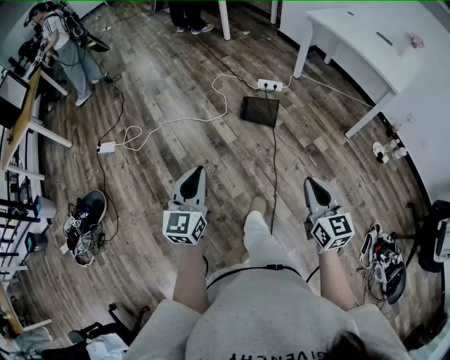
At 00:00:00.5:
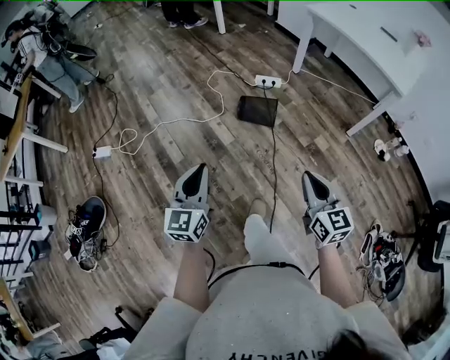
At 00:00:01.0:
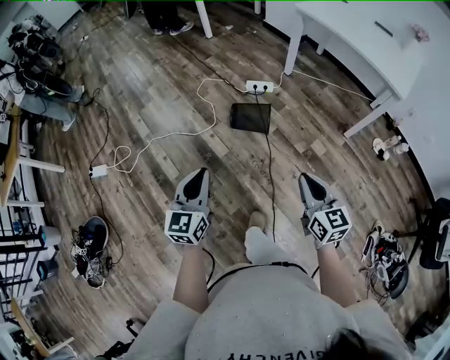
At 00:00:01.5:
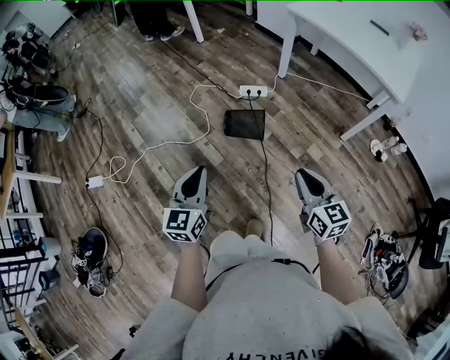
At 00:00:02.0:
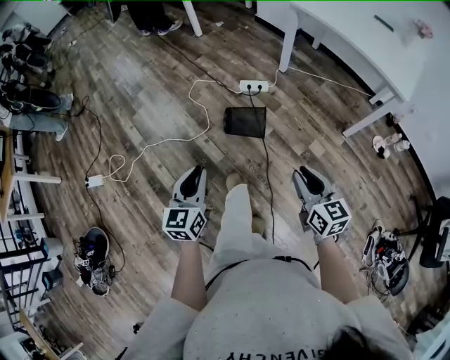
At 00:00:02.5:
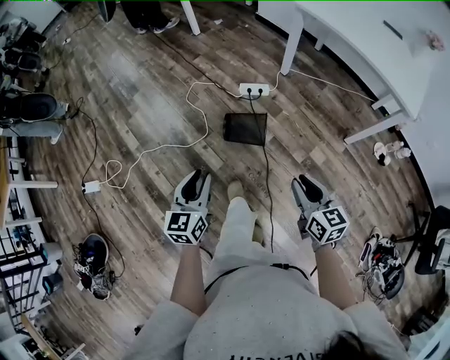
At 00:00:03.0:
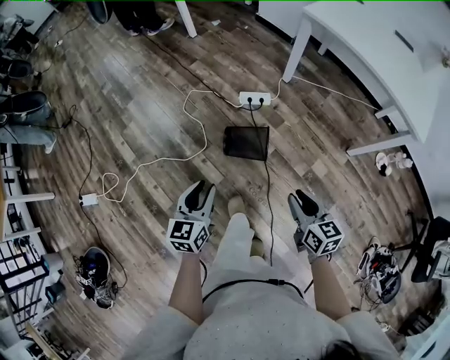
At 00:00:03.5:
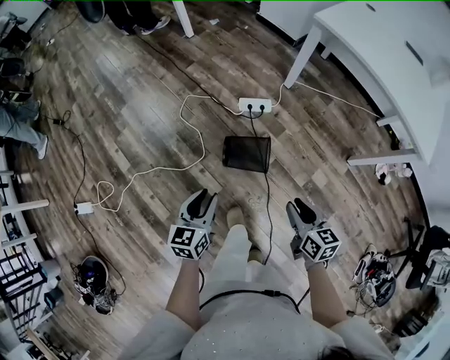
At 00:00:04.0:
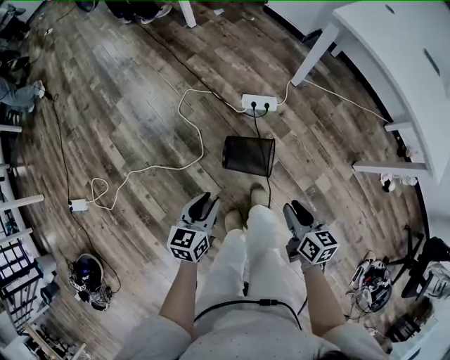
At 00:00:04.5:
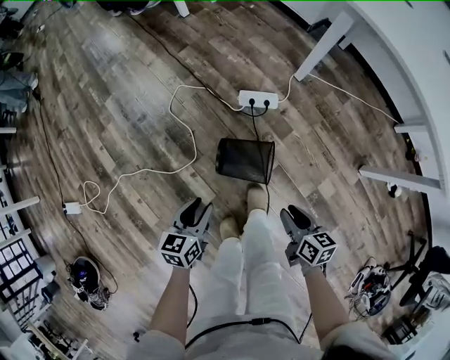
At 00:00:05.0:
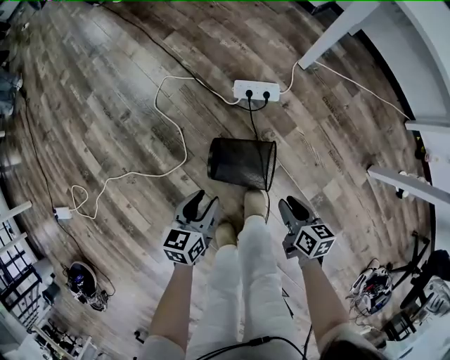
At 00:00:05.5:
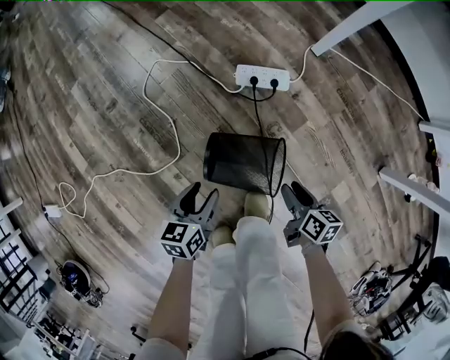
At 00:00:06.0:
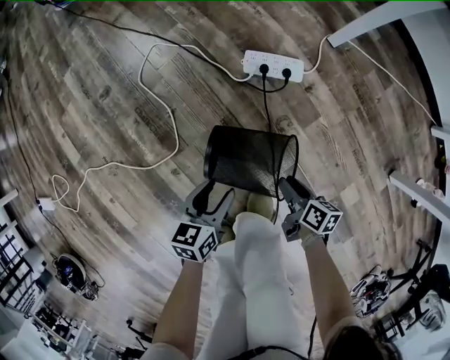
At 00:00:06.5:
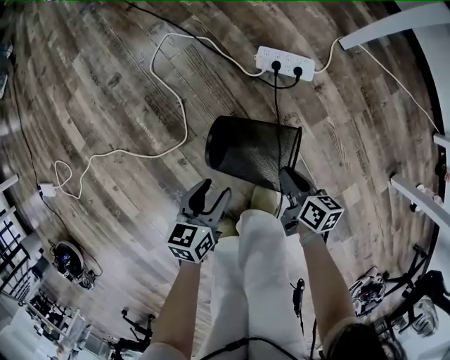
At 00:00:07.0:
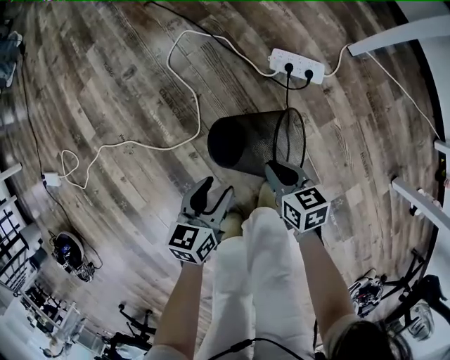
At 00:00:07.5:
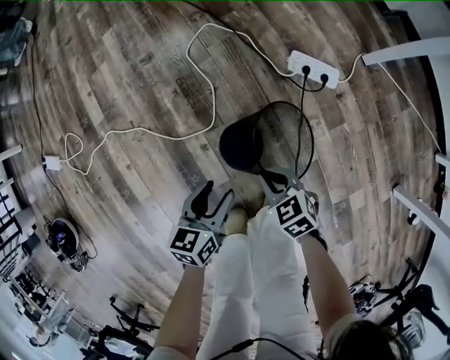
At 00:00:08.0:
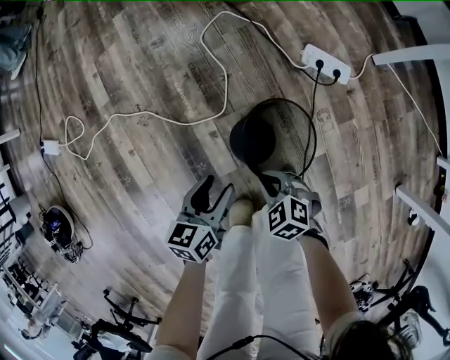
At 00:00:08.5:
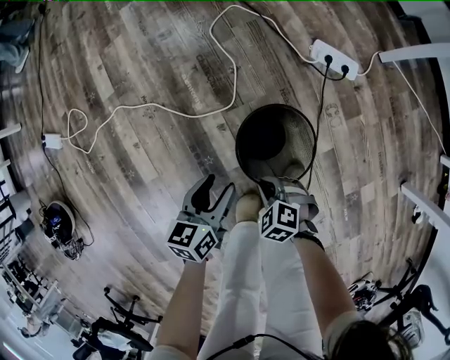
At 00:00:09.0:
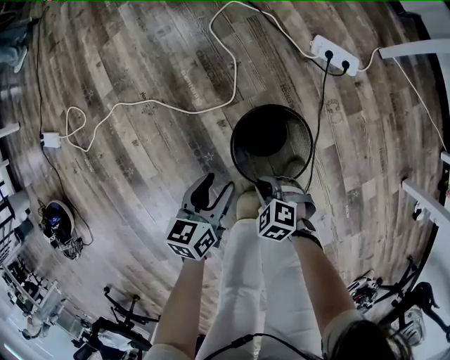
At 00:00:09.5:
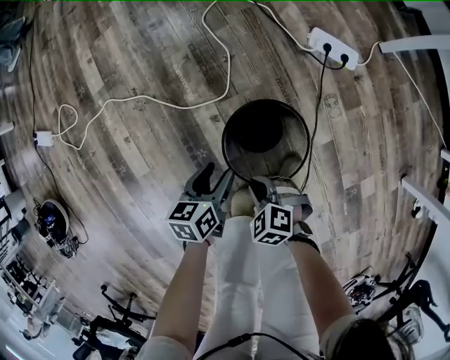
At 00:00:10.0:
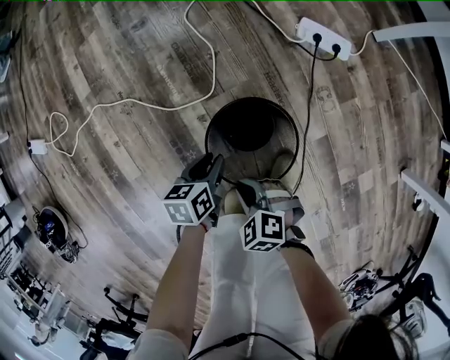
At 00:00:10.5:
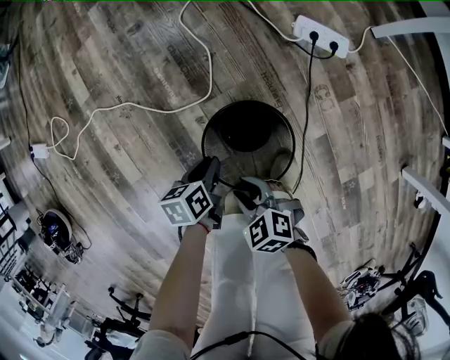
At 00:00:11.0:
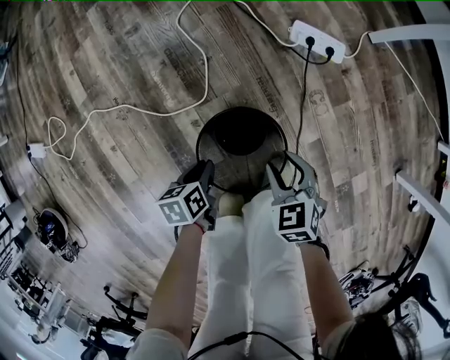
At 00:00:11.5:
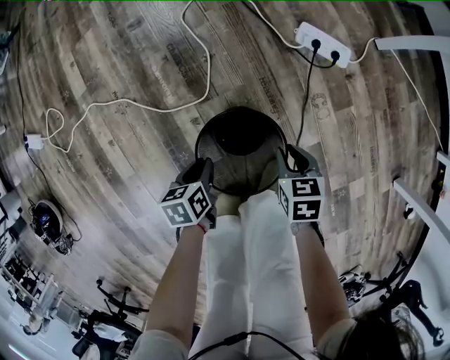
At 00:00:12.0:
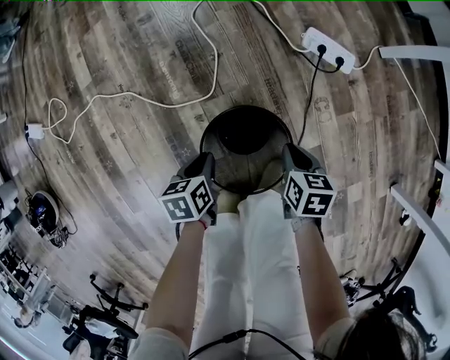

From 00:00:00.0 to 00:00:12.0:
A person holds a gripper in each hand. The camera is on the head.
From 00:00:00.0 to 00:00:02.0: The grippers both shift forward by roughly 30 cm.
From 00:00:02.0 to 00:00:04.0: The two grippers go approximately 35 cm forward and downward. The right gripper changes its angle by some 20 degrees. Meanwhile the left gripper turns by roughly 20 degrees.
From 00:00:04.0 to 00:00:06.0: Both grippers travel together downward, some 40 cm. The left gripper opens its fingers. Meanwhile the right gripper rotates roughly 30 degrees.
From 00:00:06.0 to 00:00:08.0: The left gripper ends up approximately 20 cm from where it was. Meanwhile the right gripper changes place by approximately 30 cm, twists roughly 90 degrees counterclockwise, seen from behind, and closes up.
From 00:00:08.0 to 00:00:10.0: The left gripper moves downward, roughly 15 cm, and closes its fingers, while the right gripper is displaced to the left and backward by about 10 cm.
From 00:00:10.0 to 00:00:12.0: The right gripper moves to the right and forward, approximately 20 cm, twists about 60 degrees clockwise, seen from behind, and opens and closes again.

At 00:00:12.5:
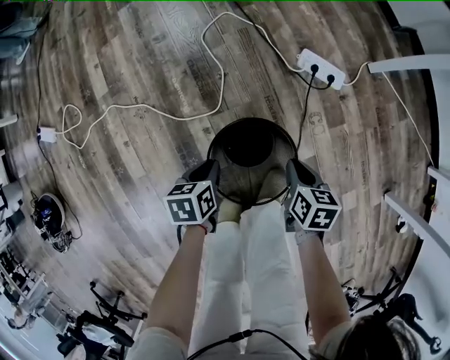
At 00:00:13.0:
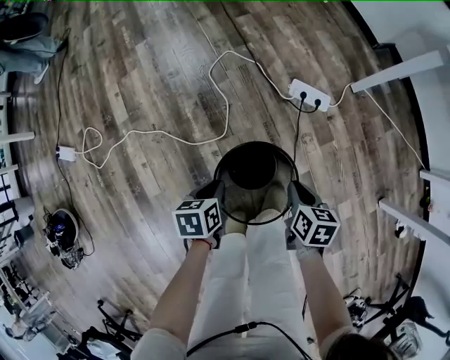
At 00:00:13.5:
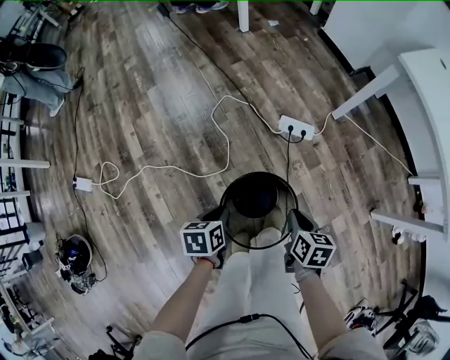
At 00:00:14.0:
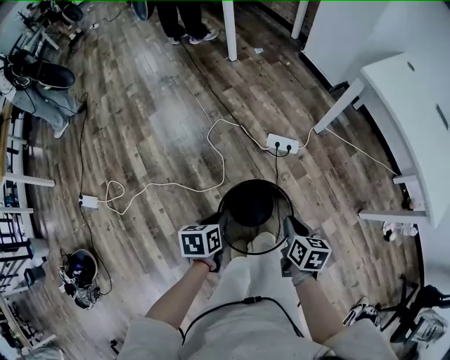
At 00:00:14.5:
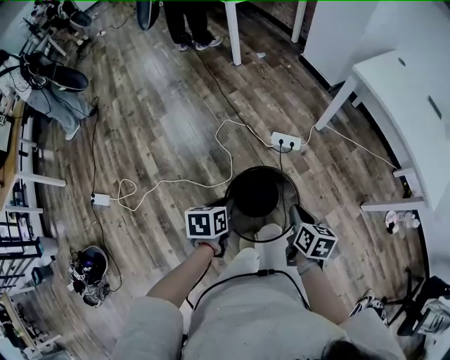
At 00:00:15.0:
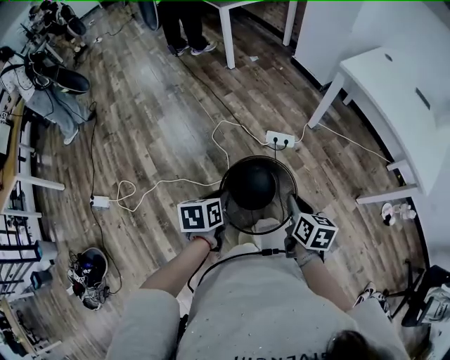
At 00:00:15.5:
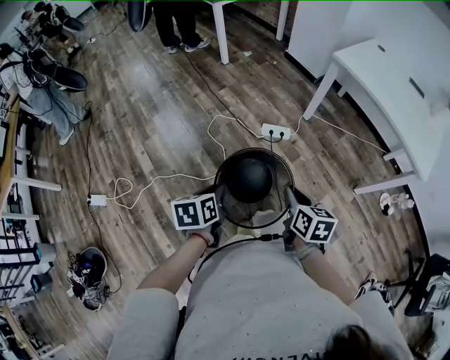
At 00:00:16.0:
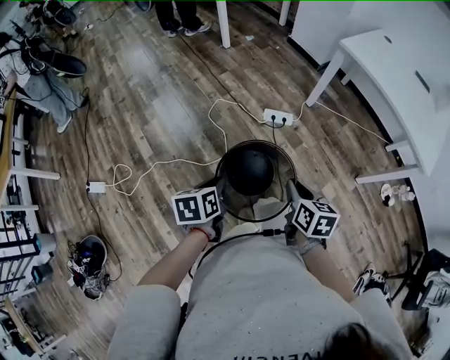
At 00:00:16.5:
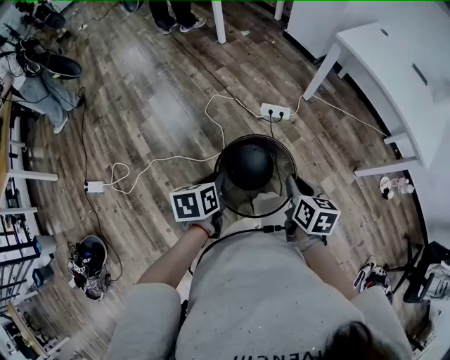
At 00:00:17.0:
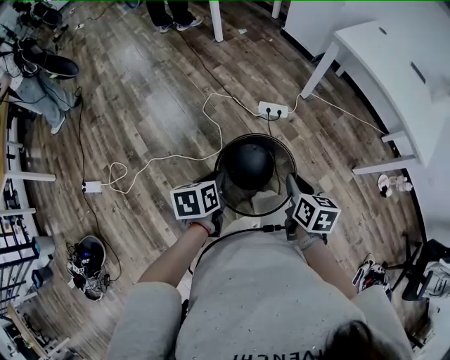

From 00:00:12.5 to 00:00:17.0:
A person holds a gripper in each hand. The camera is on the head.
From 00:00:12.5 to 00:00:14.5: Both grippers move upward, about 50 cm. The right gripper changes its angle by roughly 20 degrees.
From 00:00:14.5 to 00:00:17.0: Both grippers travel together backward, roughly 5 cm.

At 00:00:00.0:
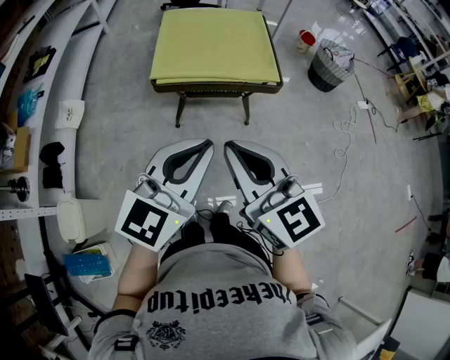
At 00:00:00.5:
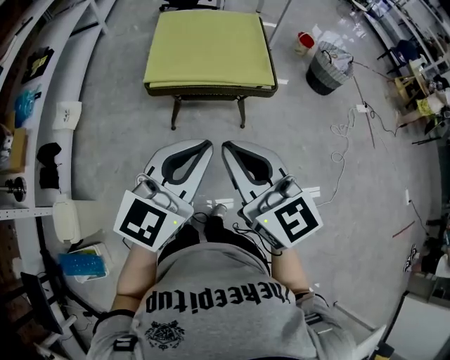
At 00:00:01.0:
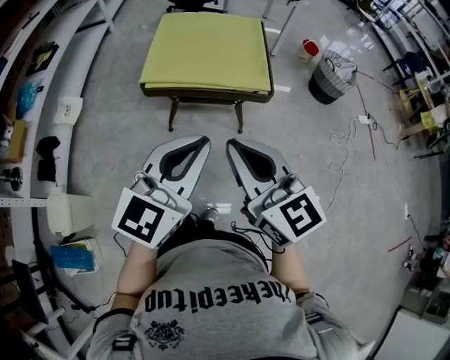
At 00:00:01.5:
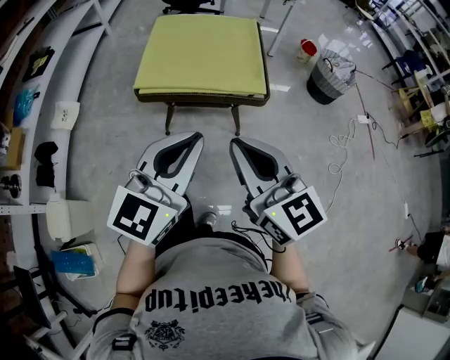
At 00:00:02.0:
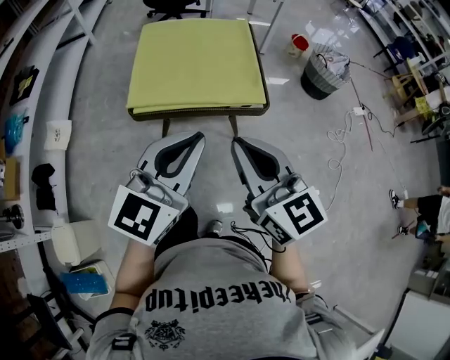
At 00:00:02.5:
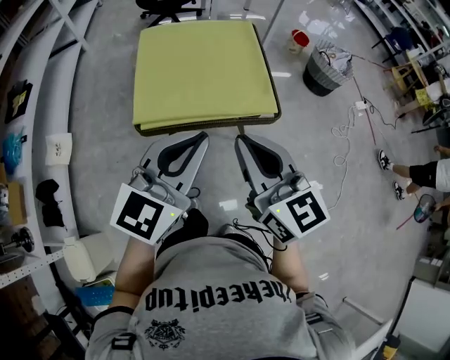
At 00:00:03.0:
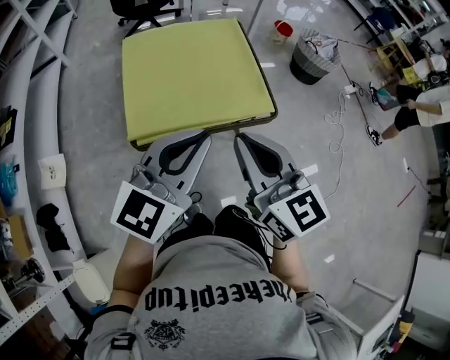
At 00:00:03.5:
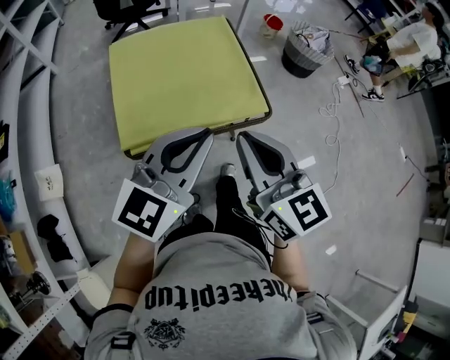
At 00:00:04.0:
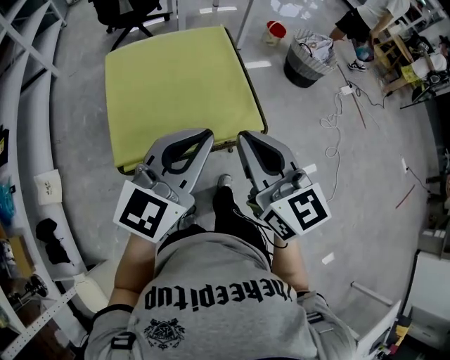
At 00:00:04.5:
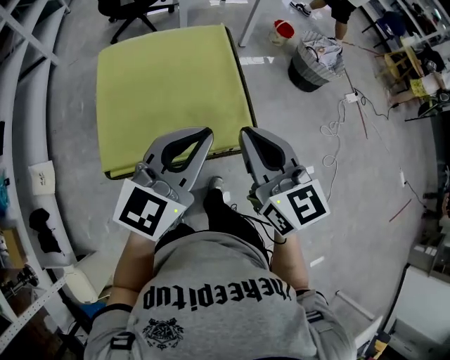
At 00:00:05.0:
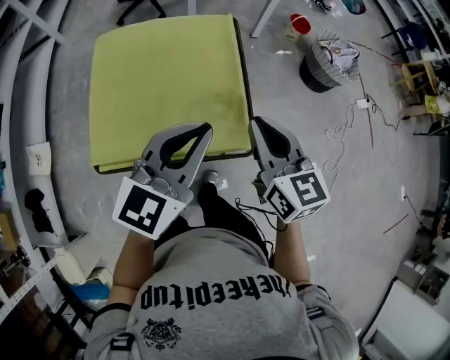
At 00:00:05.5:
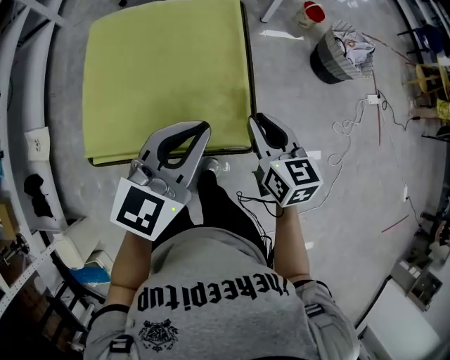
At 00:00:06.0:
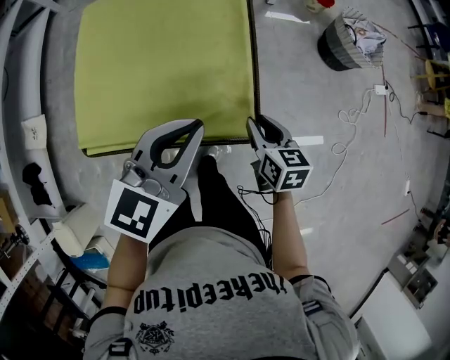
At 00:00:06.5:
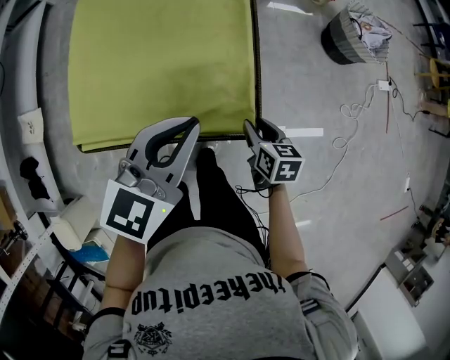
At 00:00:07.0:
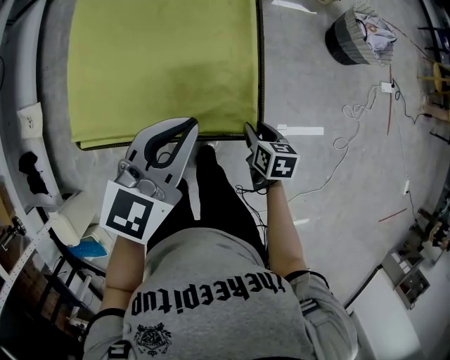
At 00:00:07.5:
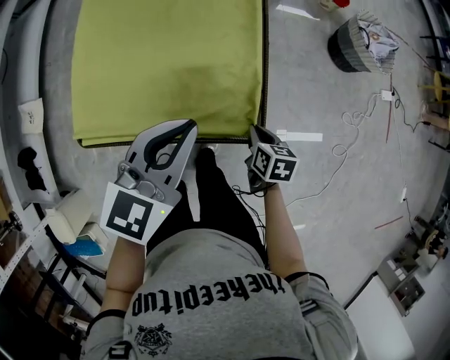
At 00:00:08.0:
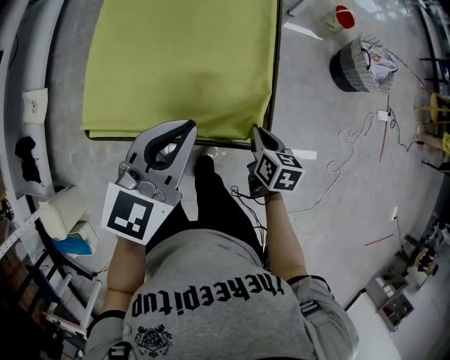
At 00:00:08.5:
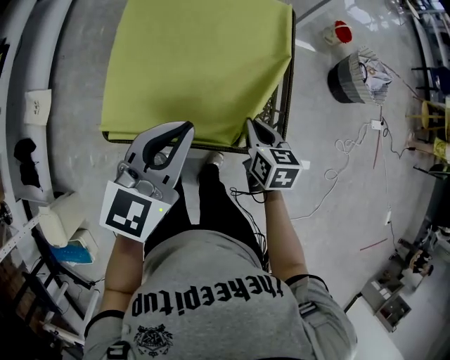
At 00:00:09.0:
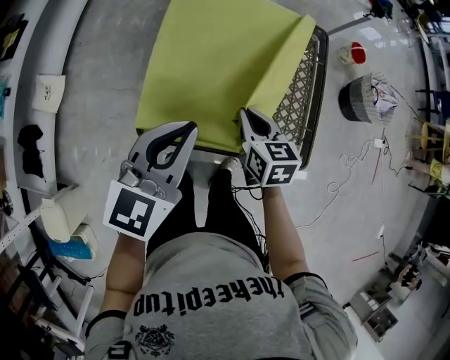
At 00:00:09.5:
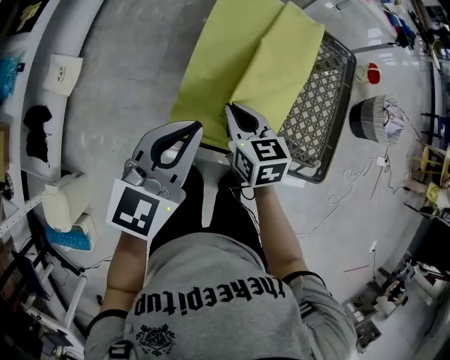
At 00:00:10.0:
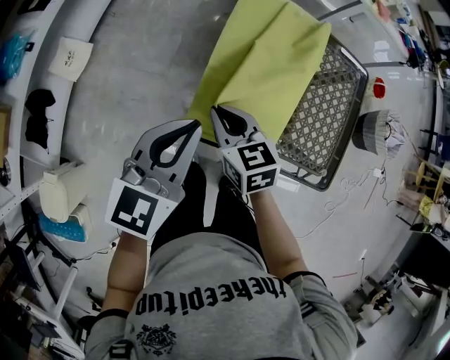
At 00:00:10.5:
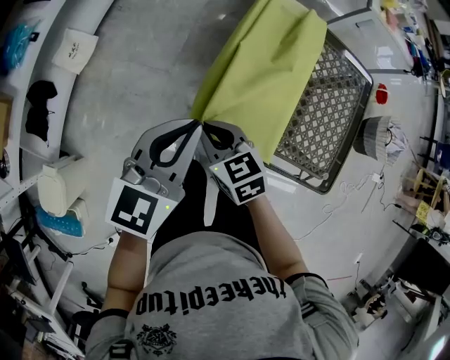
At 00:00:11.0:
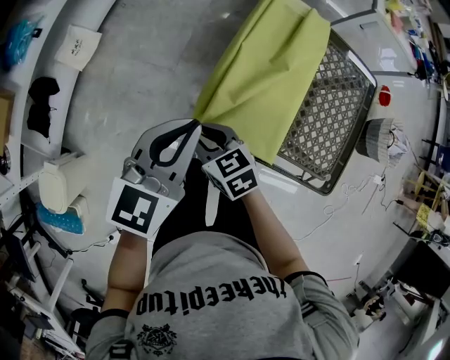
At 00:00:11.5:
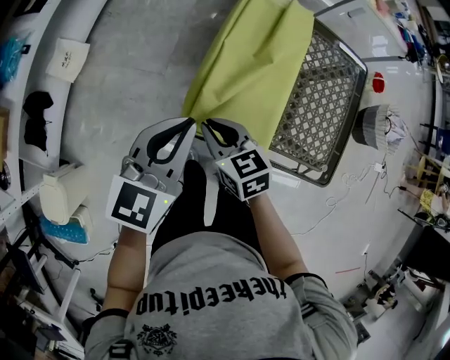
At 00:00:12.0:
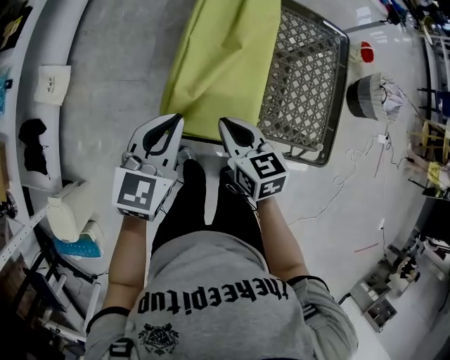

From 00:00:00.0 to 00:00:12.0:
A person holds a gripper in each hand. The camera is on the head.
From 00:00:00.0 to 00:00:02.0: The left gripper moves forward, roughly 15 cm. The right gripper goes some 15 cm forward and to the right.
From 00:00:02.0 to 00:00:04.0: The two grippers go about 20 cm forward.
From 00:00:04.0 to 00:00:06.0: The left gripper travels forward, downward and to the right by roughly 20 cm, and changes its angle by roughly 20 degrees. Meanwhile the right gripper travels downward, forward and to the right by approximately 35 cm, tips its fingers downward by about 30 degrees, and opens up.
From 00:00:06.0 to 00:00:08.0: The right gripper heads downward, covering approximately 5 cm, and closes its fingers; the left gripper heads to the left, covering some 5 cm.
From 00:00:08.0 to 00:00:10.0: Both grippers travel together to the left, some 40 cm. The right gripper changes its angle by some 40 degrees.
From 00:00:10.0 to 00:00:12.0: The right gripper goes about 10 cm to the right and backward, while the left gripper goes about 5 cm downward.
